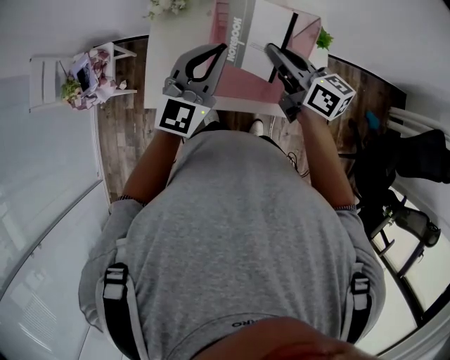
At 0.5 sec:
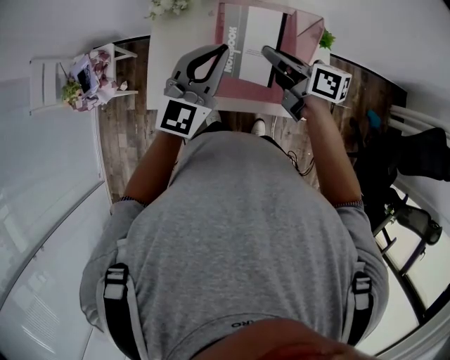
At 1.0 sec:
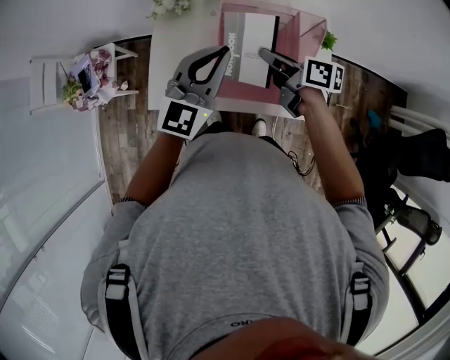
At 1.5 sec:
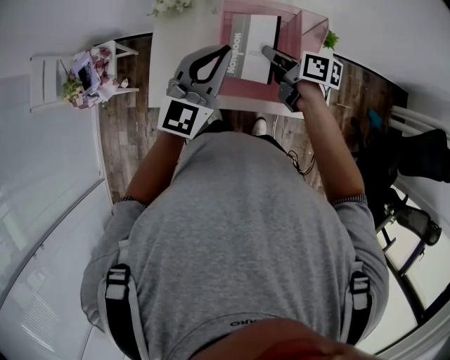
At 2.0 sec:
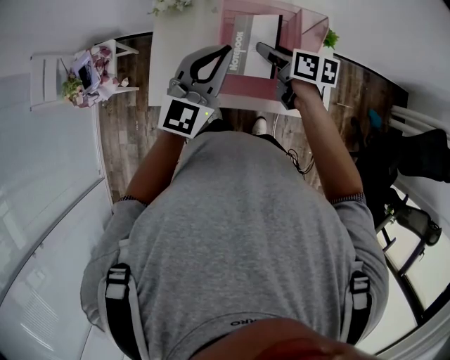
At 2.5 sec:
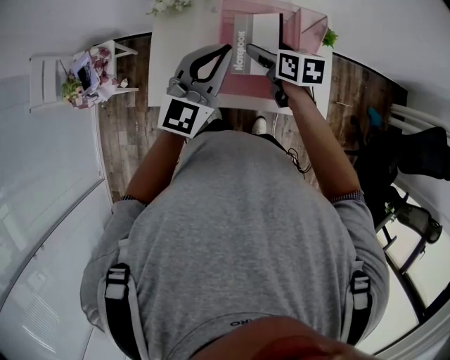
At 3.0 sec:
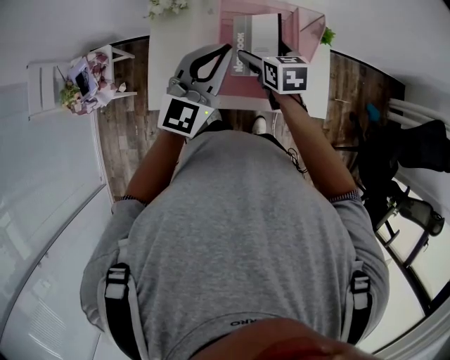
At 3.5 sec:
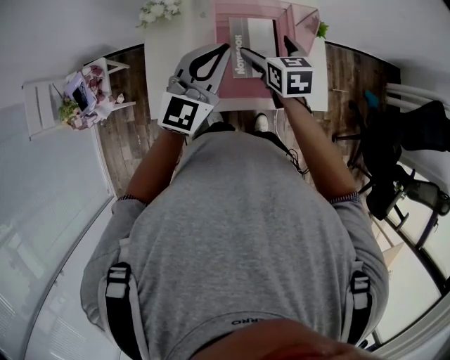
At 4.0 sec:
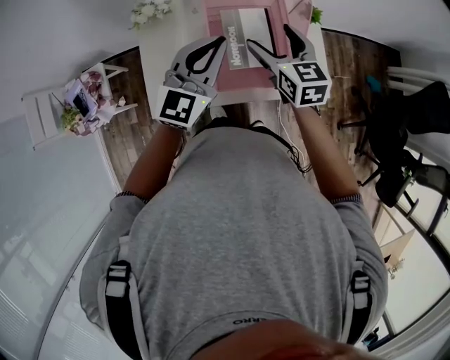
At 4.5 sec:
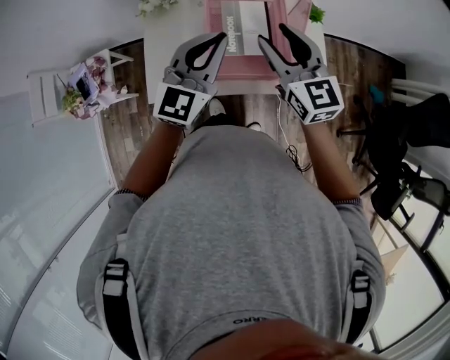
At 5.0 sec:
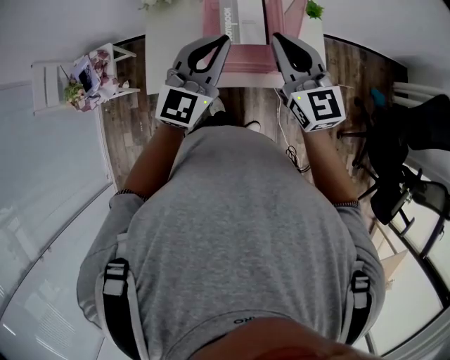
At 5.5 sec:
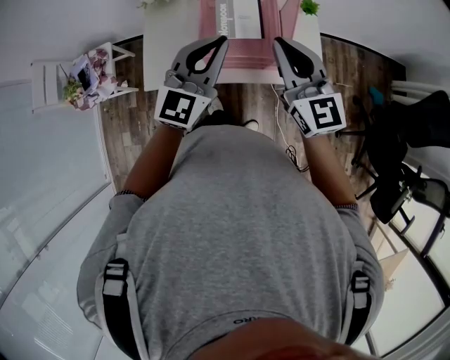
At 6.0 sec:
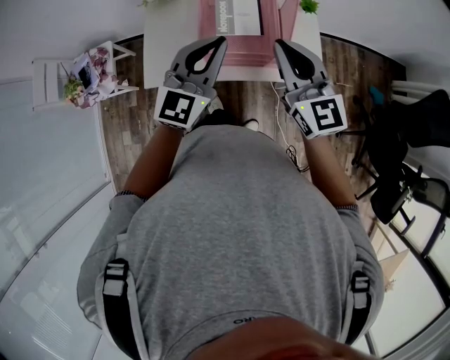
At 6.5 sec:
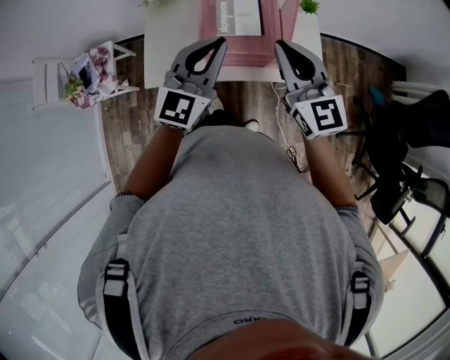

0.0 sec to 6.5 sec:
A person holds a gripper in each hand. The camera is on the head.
0.0 sec to 2.0 sec: The right gripper goes some 10 cm downward, and changes its angle by approximately 30 degrees.
2.0 sec to 4.5 sec: The right gripper shifts approximately 15 cm upward and backward, twists some 40 degrees counterclockwise, seen from behind, and opens, then closes again.
4.5 sec to 6.5 sec: The grippers both shift backward by roughly 10 cm. The right gripper closes its fingers.

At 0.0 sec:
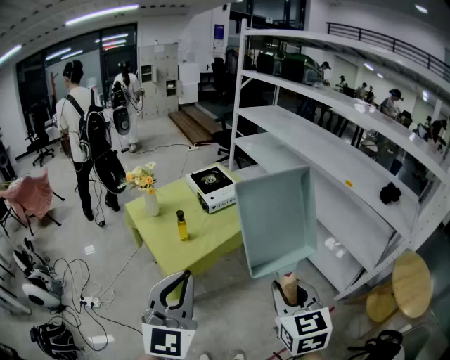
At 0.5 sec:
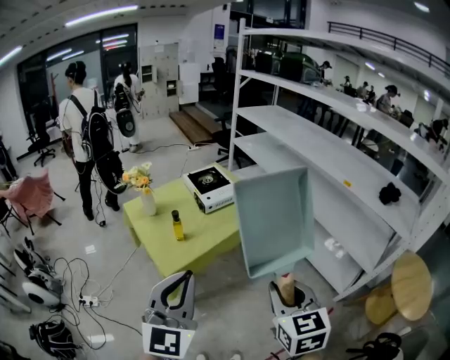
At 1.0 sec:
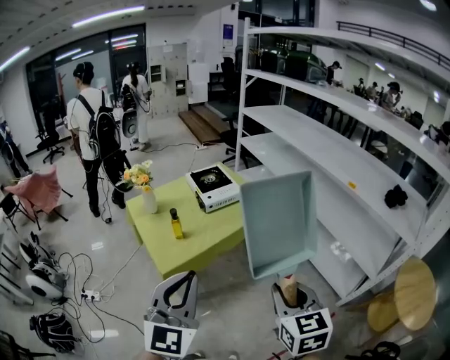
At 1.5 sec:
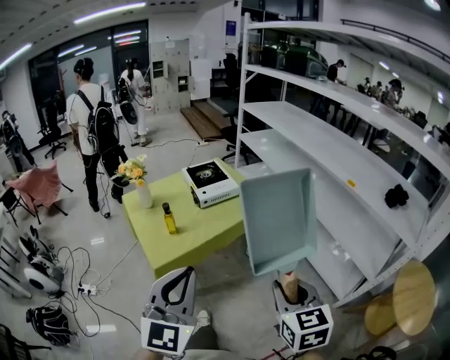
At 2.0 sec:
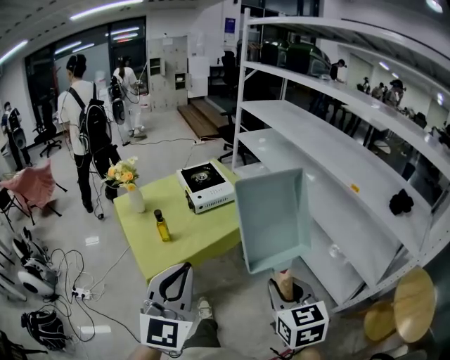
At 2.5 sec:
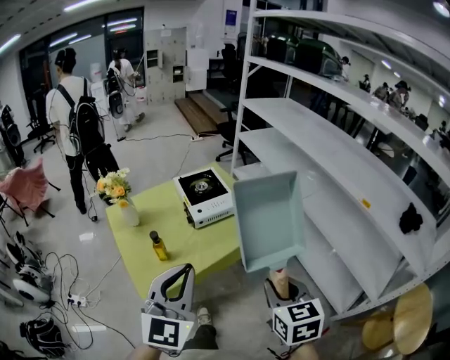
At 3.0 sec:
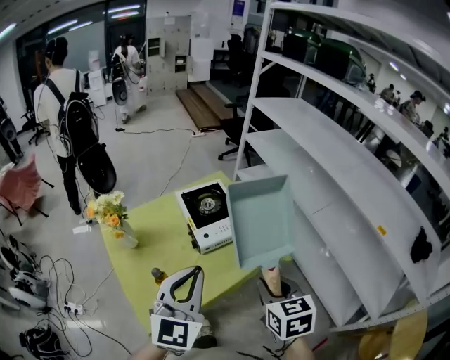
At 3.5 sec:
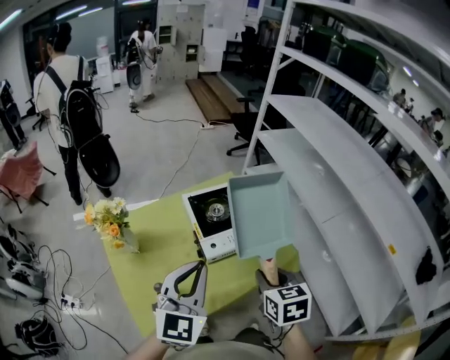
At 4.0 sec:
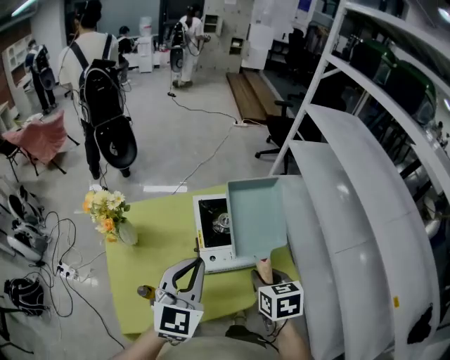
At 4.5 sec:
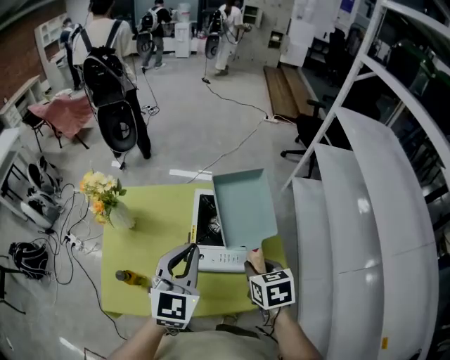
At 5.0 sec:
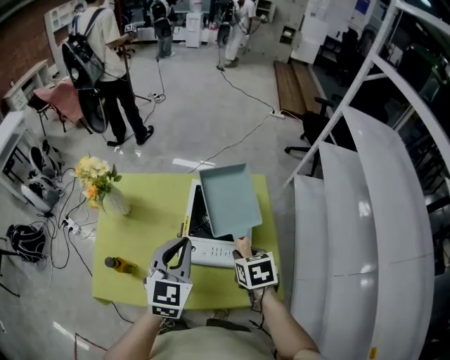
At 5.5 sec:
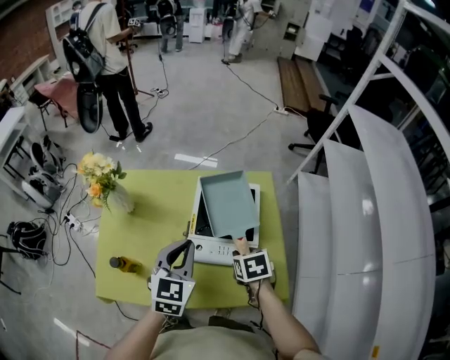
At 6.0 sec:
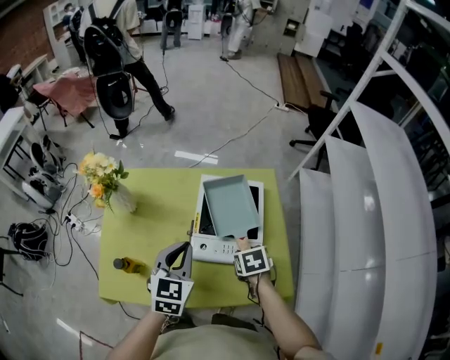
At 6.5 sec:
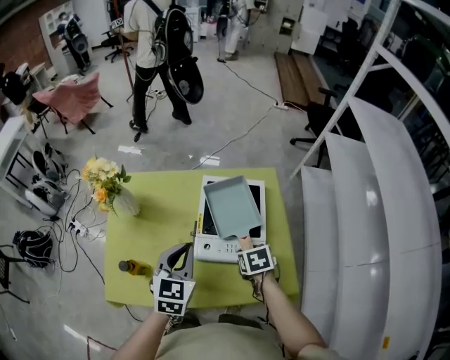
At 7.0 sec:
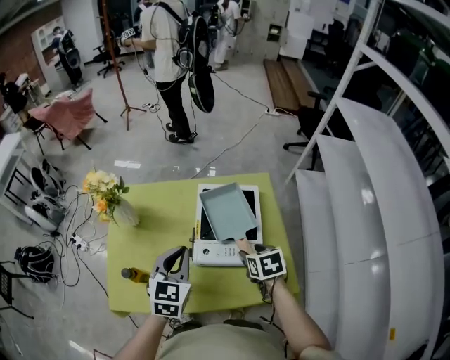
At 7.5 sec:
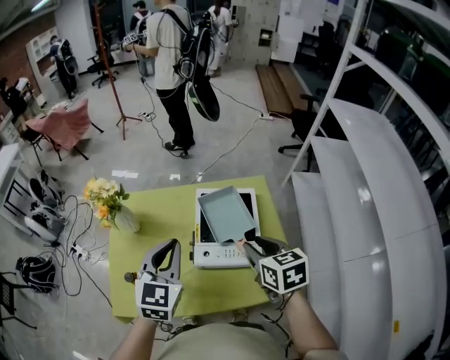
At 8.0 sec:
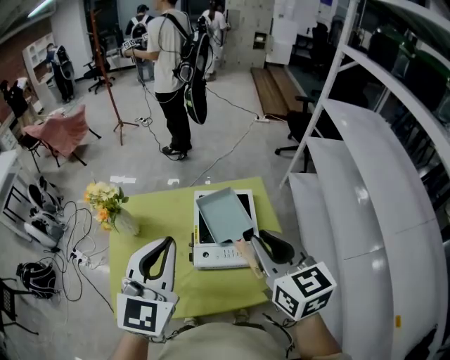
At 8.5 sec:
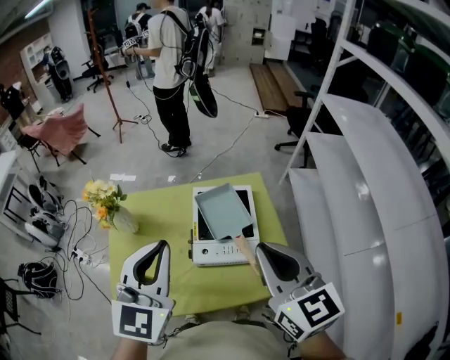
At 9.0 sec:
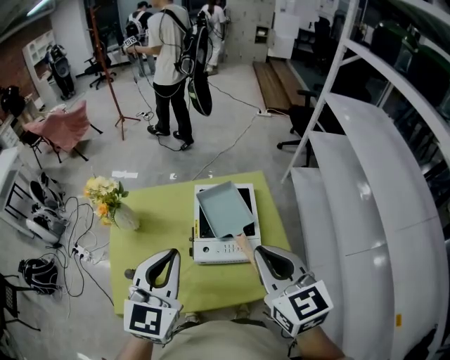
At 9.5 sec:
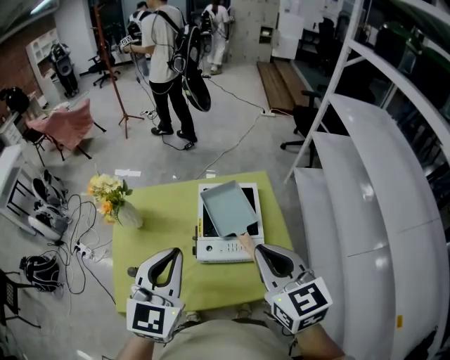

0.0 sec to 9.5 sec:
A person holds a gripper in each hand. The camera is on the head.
0.0 sec to 2.0 sec: The left gripper goes some 15 cm to the right and forward. Meanwhile the right gripper heads to the right, forward and downward, covering some 15 cm.
2.0 sec to 4.0 sec: The two grippers travel together, forward, about 50 cm. The right gripper turns by approximately 30 degrees.
4.0 sec to 5.5 sec: The grippers both shift downward and forward by some 15 cm. The right gripper rotates about 30 degrees; the left gripper changes its angle by roughly 30 degrees.
5.5 sec to 7.5 sec: The right gripper shifts some 15 cm upward, and turns by approximately 20 degrees; the left gripper moves upward, some 10 cm.
7.5 sec to 9.5 sec: The right gripper shifts approximately 15 cm upward and backward, changes its angle by approximately 20 degrees, and closes up. Meanwhile the left gripper is displaced upward and backward by about 10 cm.

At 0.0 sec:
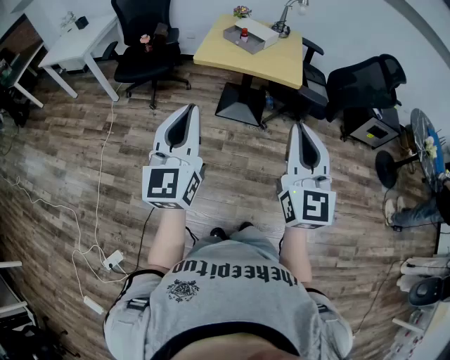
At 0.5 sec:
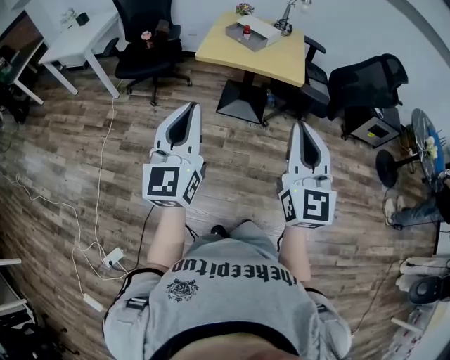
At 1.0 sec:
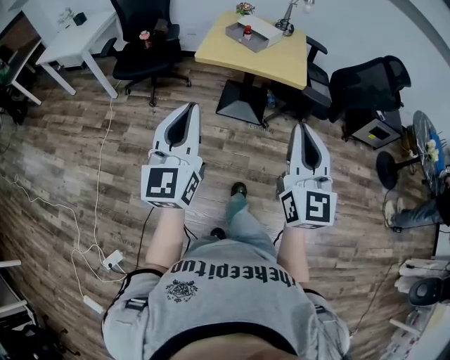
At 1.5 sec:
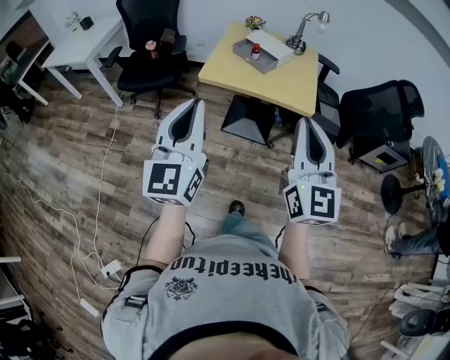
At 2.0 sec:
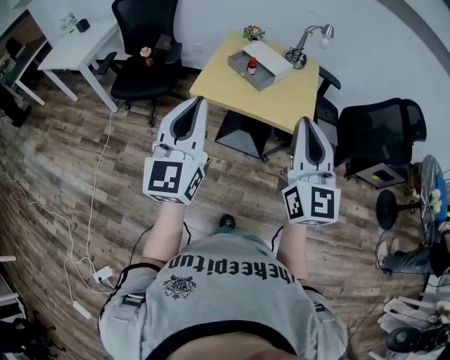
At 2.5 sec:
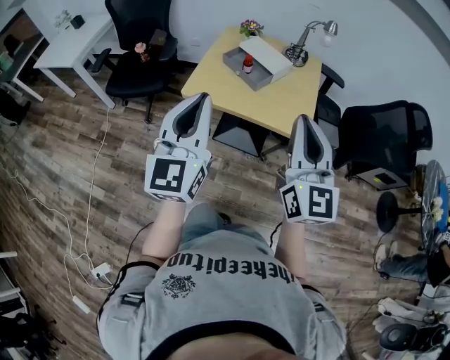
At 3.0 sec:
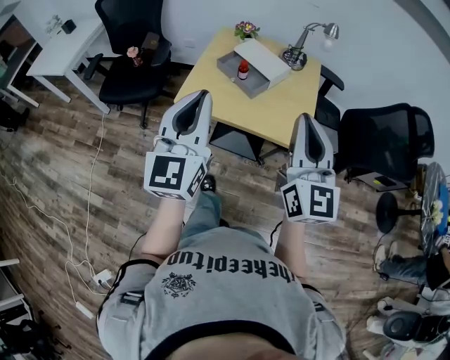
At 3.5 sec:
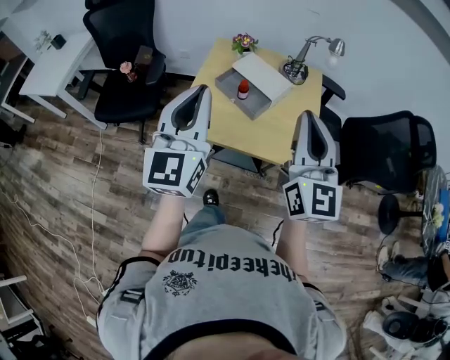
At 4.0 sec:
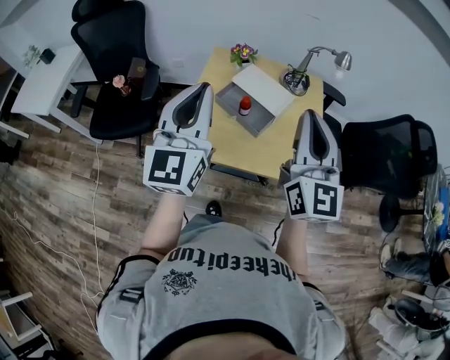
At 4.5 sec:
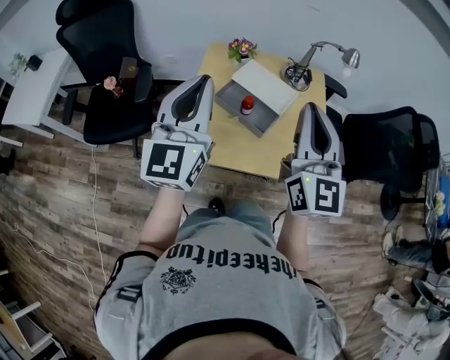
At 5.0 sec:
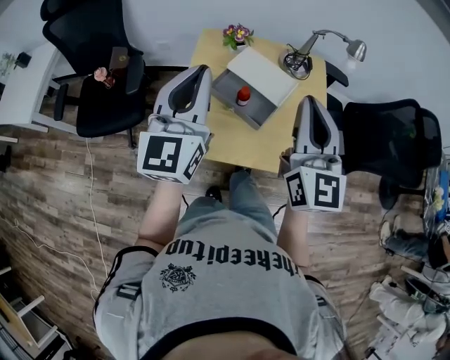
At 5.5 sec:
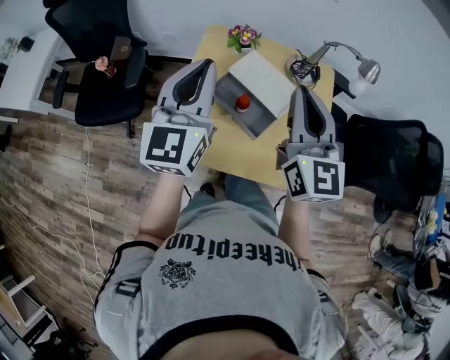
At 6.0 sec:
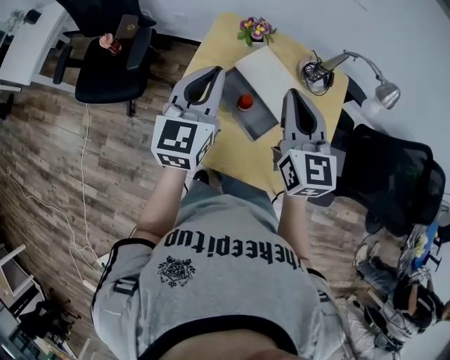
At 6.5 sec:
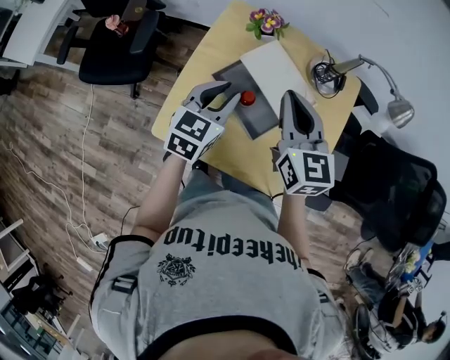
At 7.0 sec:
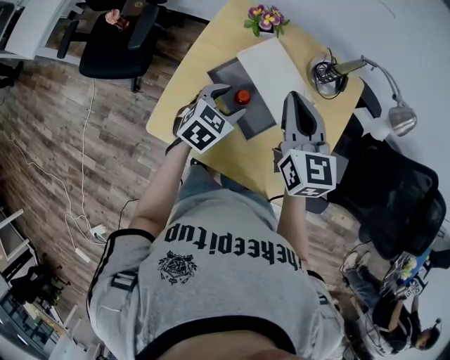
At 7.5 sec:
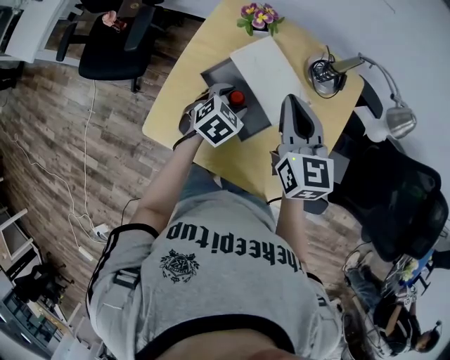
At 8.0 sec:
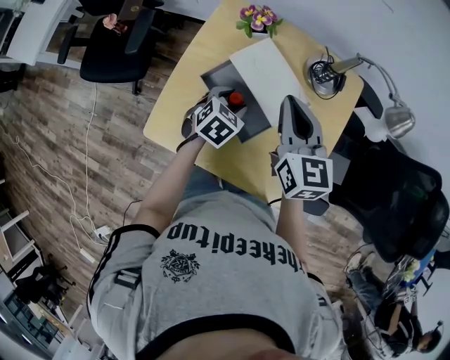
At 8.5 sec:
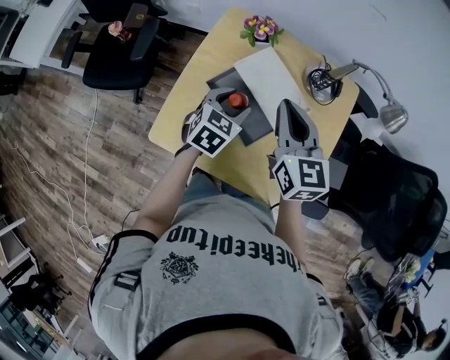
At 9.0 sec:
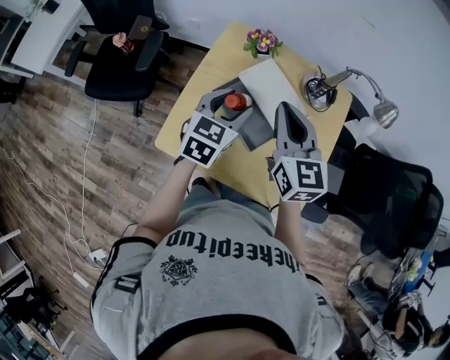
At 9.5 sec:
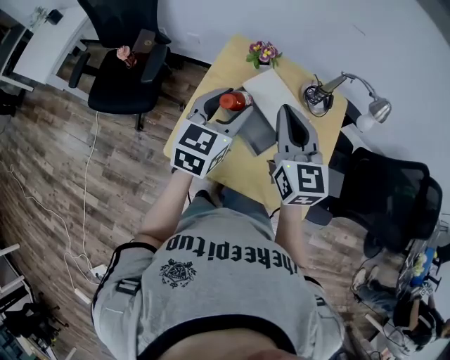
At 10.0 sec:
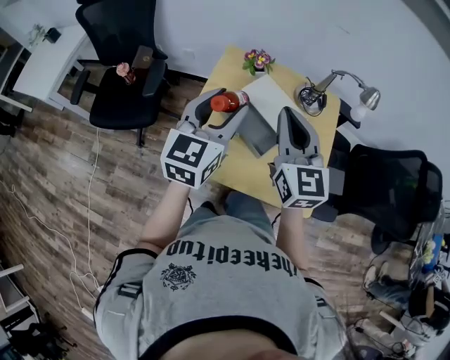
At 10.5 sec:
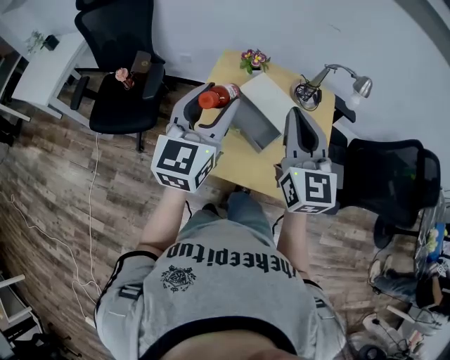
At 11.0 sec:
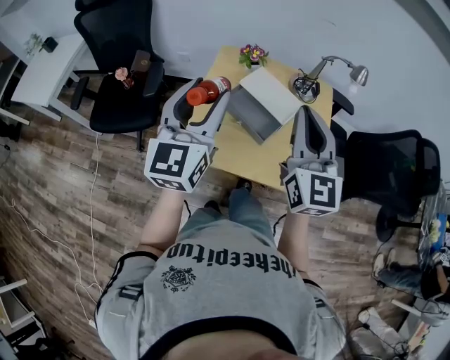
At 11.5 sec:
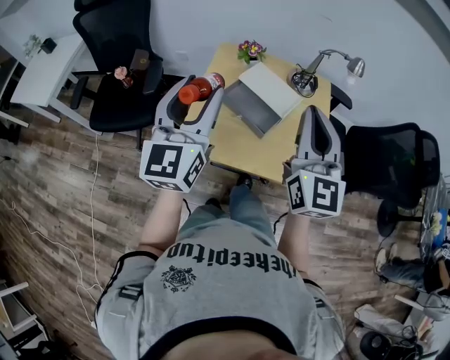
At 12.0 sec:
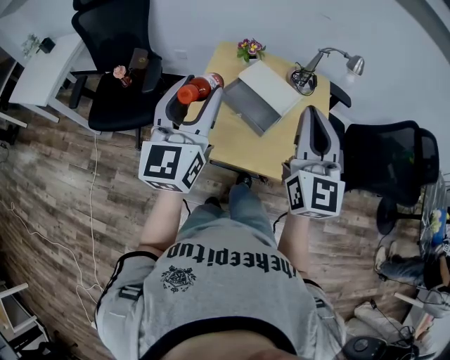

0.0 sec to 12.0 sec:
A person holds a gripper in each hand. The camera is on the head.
0.0 sec to 2.0 sec: Both grippers travel together forward, some 30 cm.
2.0 sec to 4.0 sec: Both grippers travel together forward, roughly 35 cm.
4.0 sec to 6.0 sec: Both grippers move forward and downward, about 25 cm. The right gripper swivels some 30 degrees.
6.0 sec to 8.0 sec: The right gripper goes roughly 10 cm downward. Meanwhile the left gripper goes approximately 30 cm downward and to the right, tips its fingers downward by some 50 degrees, and opens its fingers.
8.0 sec to 10.0 sec: The left gripper heads upward, covering about 30 cm, and tips its fingers upward by approximately 50 degrees; the right gripper heads upward, backward and to the left, covering roughly 20 cm.
10.0 sec to 12.0 sec: The right gripper goes roughly 15 cm backward and upward. Meanwhile the left gripper travels backward, upward and to the left by about 15 cm.
